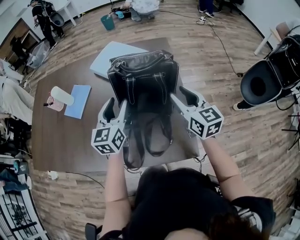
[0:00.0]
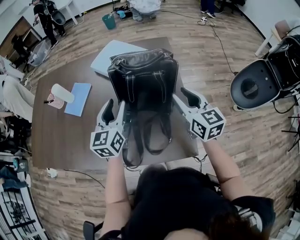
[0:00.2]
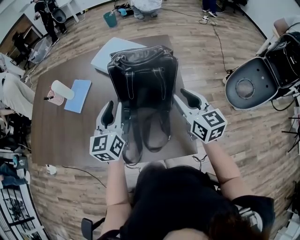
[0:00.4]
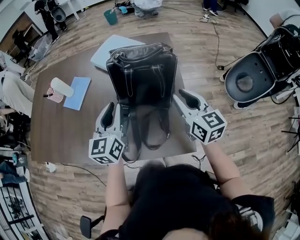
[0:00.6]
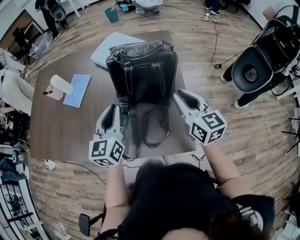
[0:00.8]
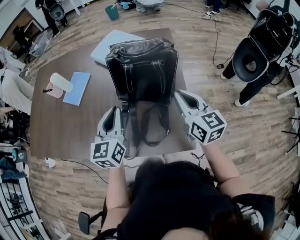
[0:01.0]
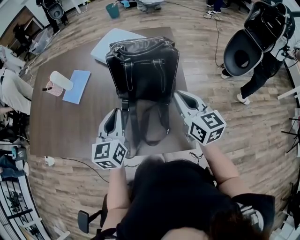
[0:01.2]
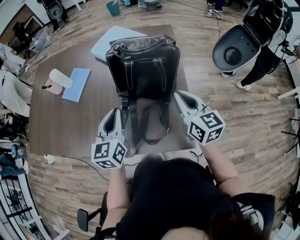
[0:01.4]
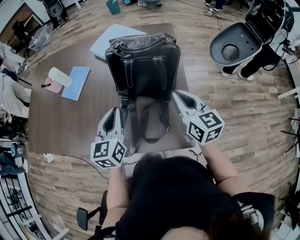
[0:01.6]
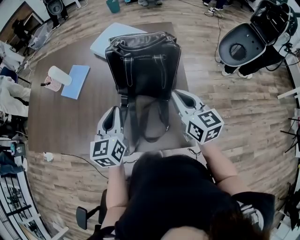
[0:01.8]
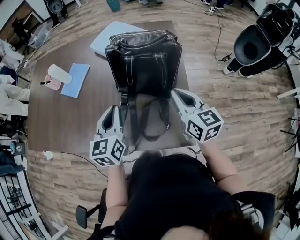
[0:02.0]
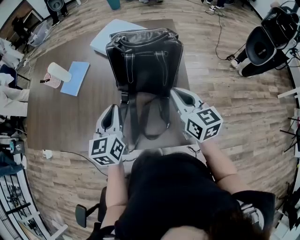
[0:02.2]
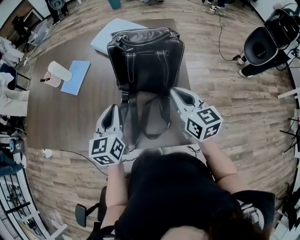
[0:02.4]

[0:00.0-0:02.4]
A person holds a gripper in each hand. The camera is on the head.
0:00.0 to 0:01.2: The right gripper changes place by roughly 5 cm, and closes its fingers; the left gripper shifts approximately 10 cm backward, and closes its fingers.
0:01.2 to 0:02.4: The grippers move only a little.

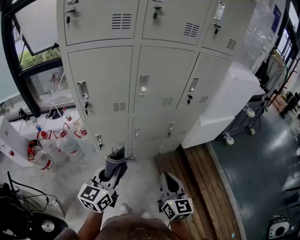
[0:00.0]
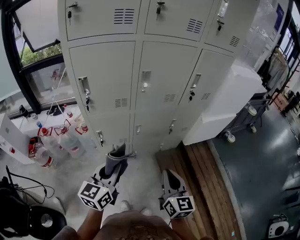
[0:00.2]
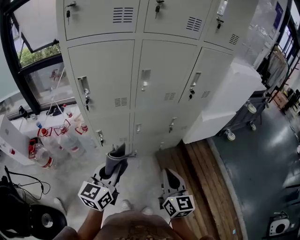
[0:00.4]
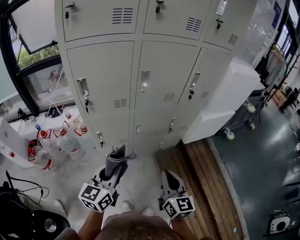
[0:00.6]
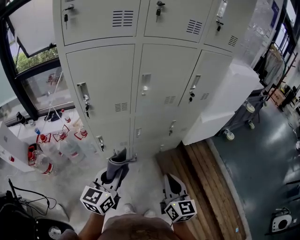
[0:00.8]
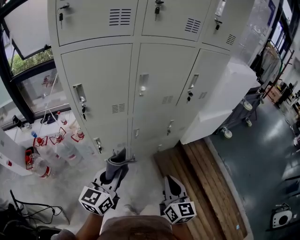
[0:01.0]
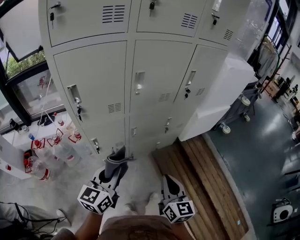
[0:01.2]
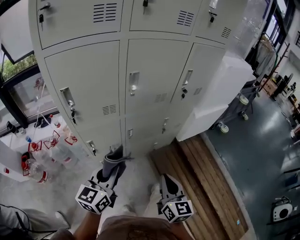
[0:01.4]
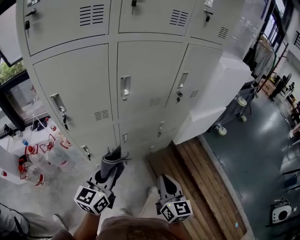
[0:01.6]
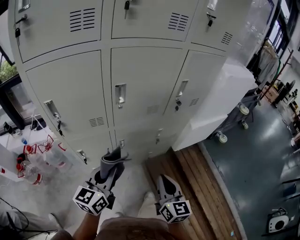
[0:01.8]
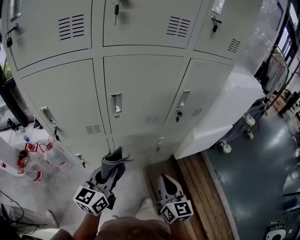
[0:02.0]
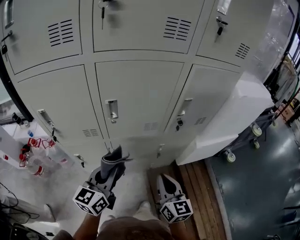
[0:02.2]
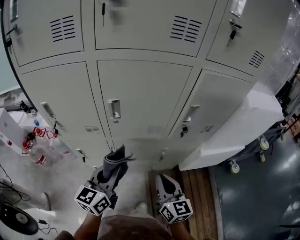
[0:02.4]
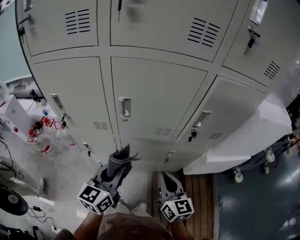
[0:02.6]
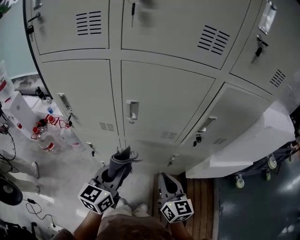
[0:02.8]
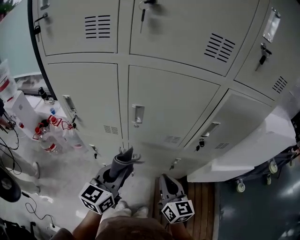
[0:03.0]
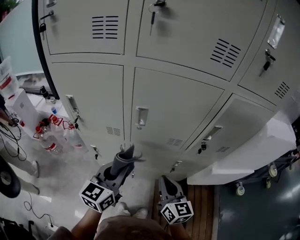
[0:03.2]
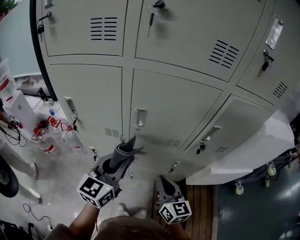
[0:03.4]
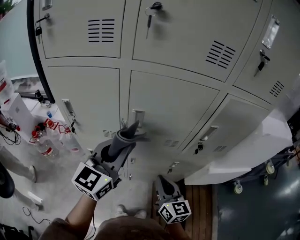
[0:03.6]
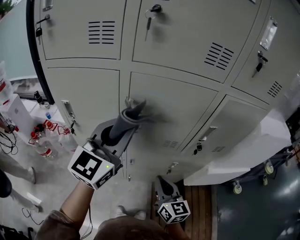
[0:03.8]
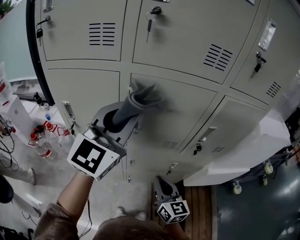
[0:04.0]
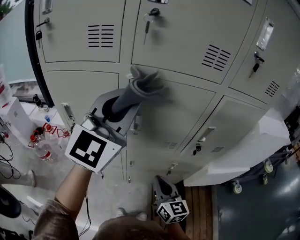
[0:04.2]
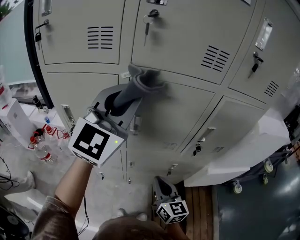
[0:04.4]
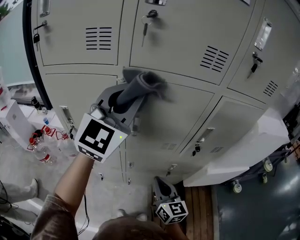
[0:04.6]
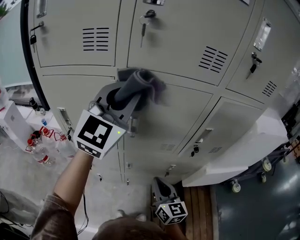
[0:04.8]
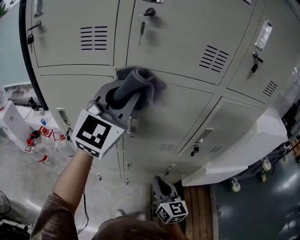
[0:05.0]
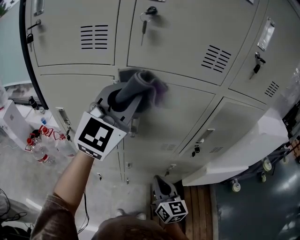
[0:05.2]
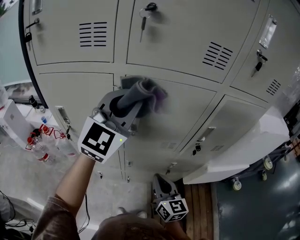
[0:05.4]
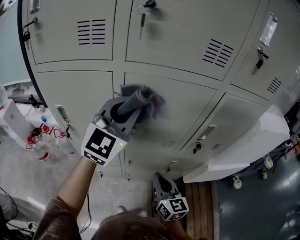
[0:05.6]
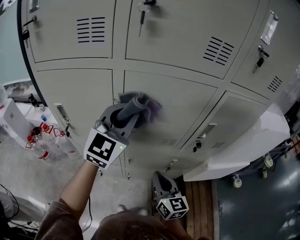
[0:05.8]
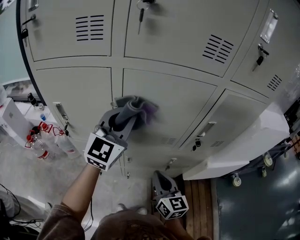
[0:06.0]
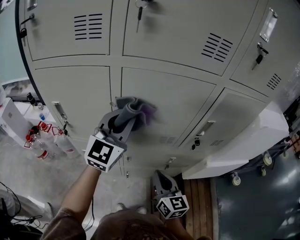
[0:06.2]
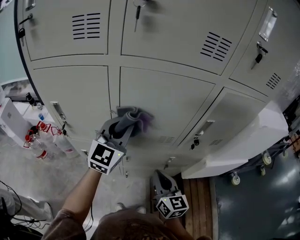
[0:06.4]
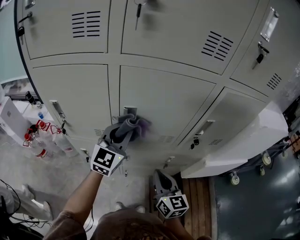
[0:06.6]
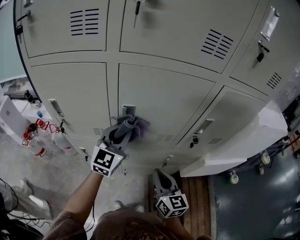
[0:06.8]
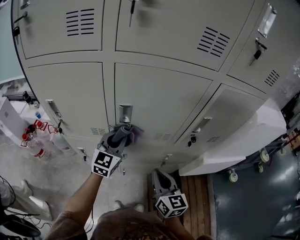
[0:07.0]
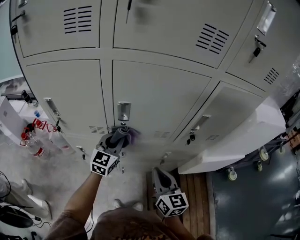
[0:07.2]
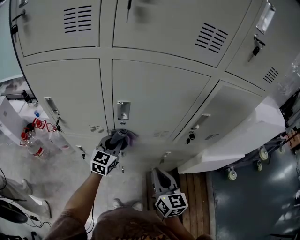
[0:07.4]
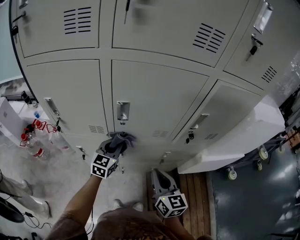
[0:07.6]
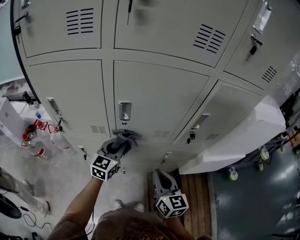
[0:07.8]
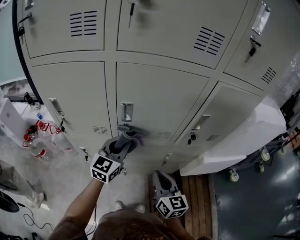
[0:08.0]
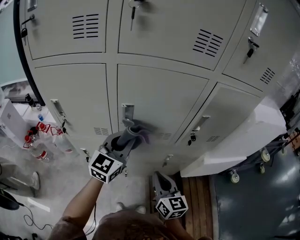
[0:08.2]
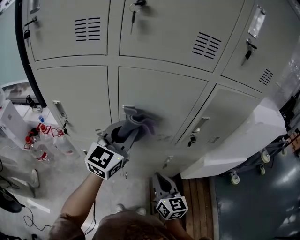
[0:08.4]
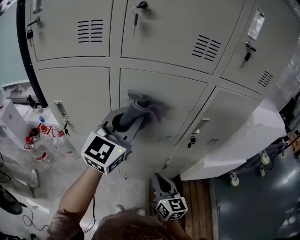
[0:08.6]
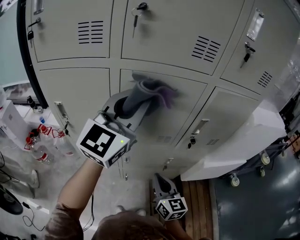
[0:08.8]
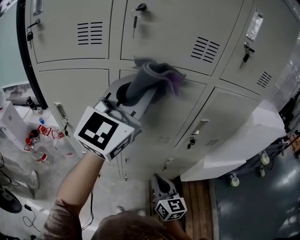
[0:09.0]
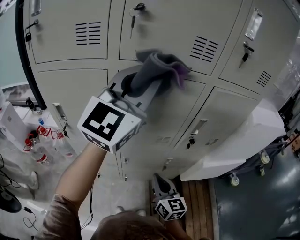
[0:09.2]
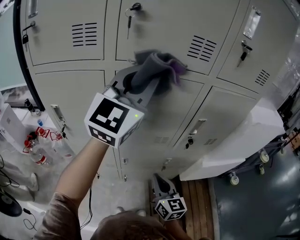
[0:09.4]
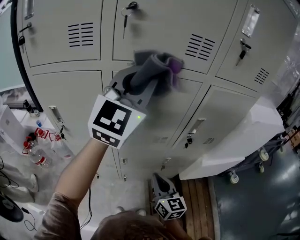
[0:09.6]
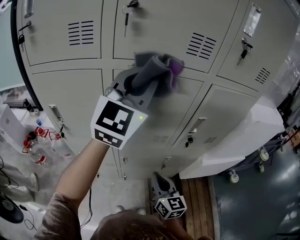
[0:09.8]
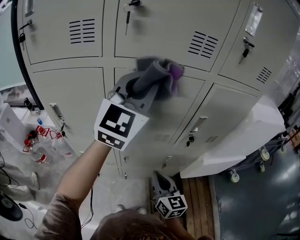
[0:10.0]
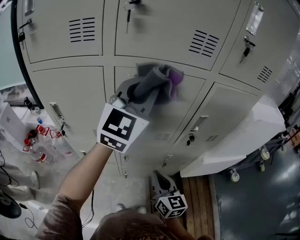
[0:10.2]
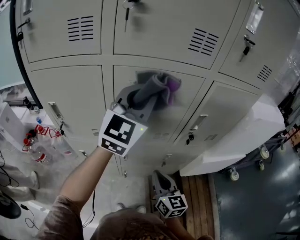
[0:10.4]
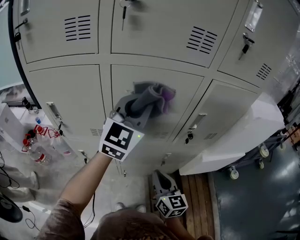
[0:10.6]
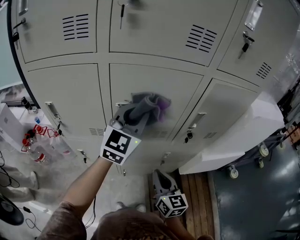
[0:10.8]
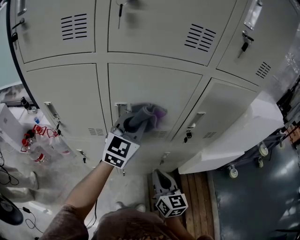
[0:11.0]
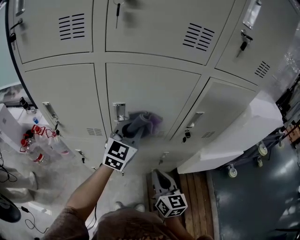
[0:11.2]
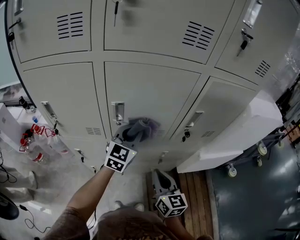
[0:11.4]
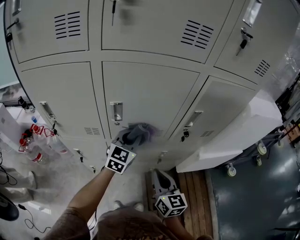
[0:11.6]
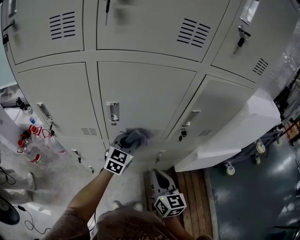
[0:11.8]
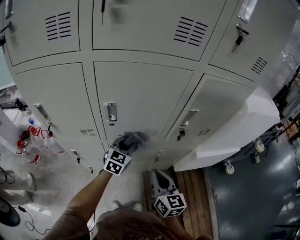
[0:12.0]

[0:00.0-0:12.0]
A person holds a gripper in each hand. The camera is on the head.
0:00.0 to 0:01.6: The left gripper is displaced forward by about 10 cm, while the right gripper goes roughly 5 cm forward.
0:01.6 to 0:03.0: The left gripper ends up some 15 cm from where it was, and swivels roughly 20 degrees. The right gripper changes place by roughly 20 cm, and swivels approximately 30 degrees.
0:03.0 to 0:04.4: The left gripper shifts roughly 30 cm upward and forward, and turns by some 40 degrees.
0:04.4 to 0:06.0: The left gripper moves downward, some 15 cm.
0:06.0 to 0:07.6: The left gripper is displaced downward by approximately 25 cm, and turns by approximately 30 degrees.
0:07.6 to 0:09.0: The left gripper is displaced upward by some 40 cm, and tips its fingers upward by roughly 30 degrees.
0:09.0 to 0:10.4: The left gripper travels downward and forward by roughly 10 cm.
0:10.4 to 0:12.0: The left gripper goes roughly 35 cm downward, and swivels roughly 30 degrees.

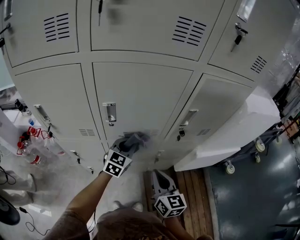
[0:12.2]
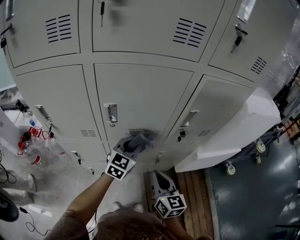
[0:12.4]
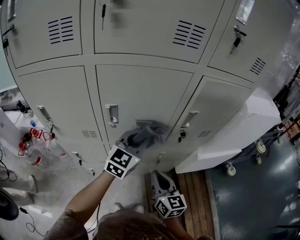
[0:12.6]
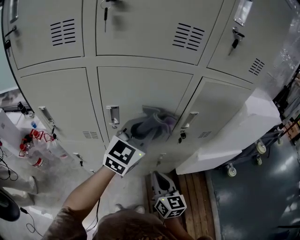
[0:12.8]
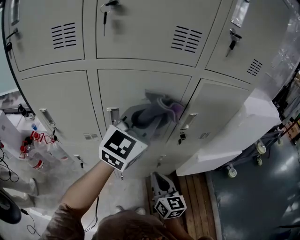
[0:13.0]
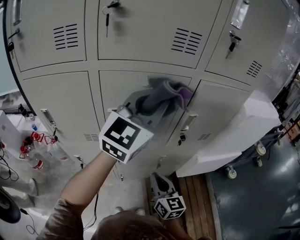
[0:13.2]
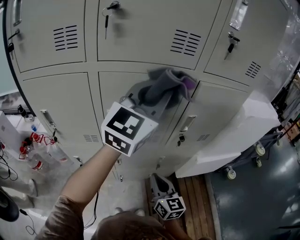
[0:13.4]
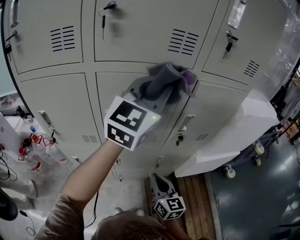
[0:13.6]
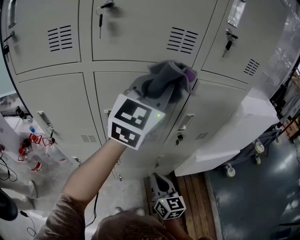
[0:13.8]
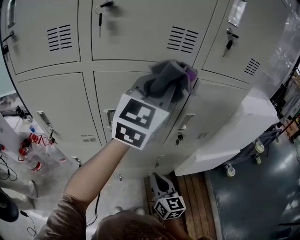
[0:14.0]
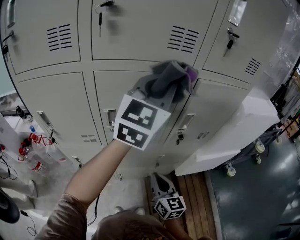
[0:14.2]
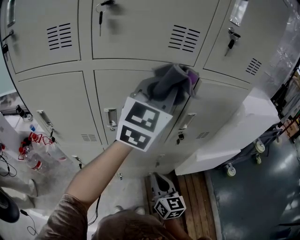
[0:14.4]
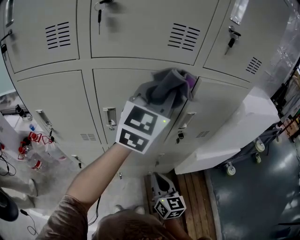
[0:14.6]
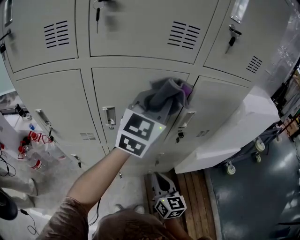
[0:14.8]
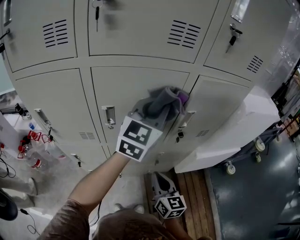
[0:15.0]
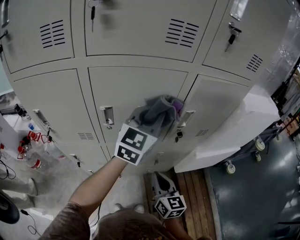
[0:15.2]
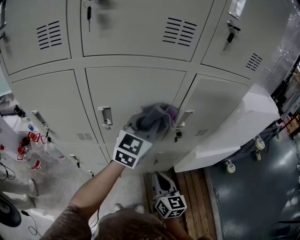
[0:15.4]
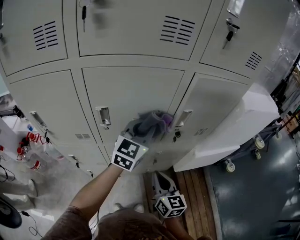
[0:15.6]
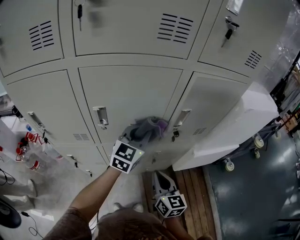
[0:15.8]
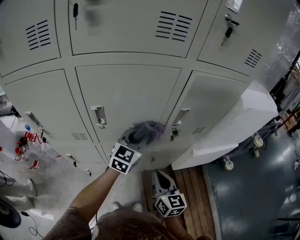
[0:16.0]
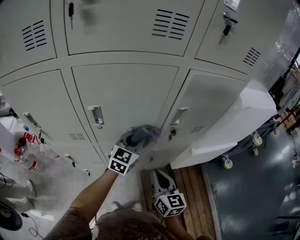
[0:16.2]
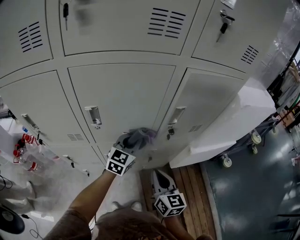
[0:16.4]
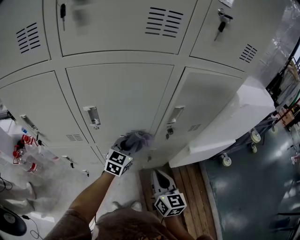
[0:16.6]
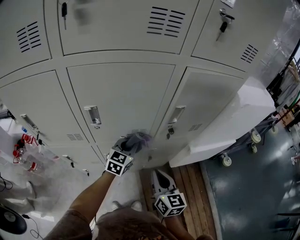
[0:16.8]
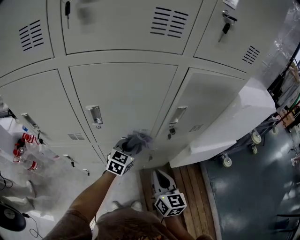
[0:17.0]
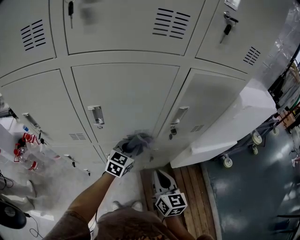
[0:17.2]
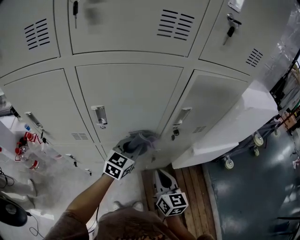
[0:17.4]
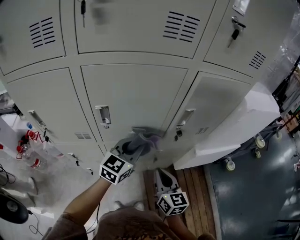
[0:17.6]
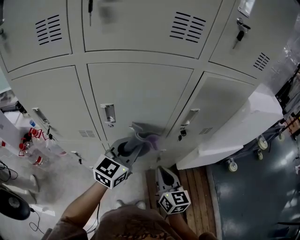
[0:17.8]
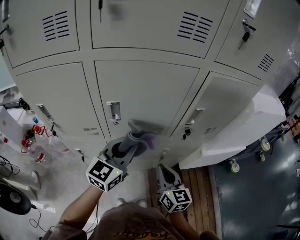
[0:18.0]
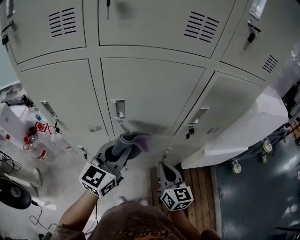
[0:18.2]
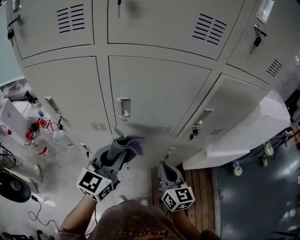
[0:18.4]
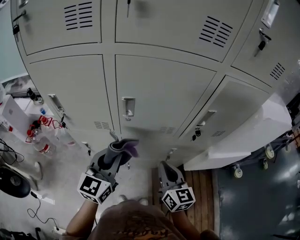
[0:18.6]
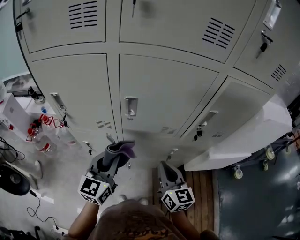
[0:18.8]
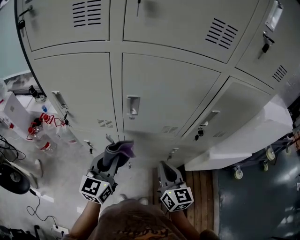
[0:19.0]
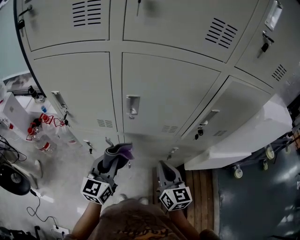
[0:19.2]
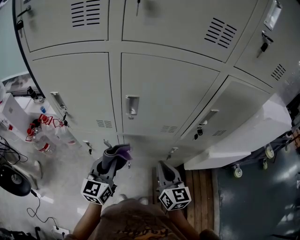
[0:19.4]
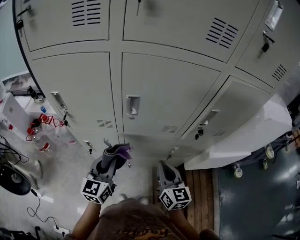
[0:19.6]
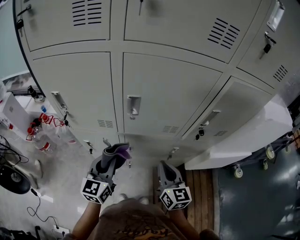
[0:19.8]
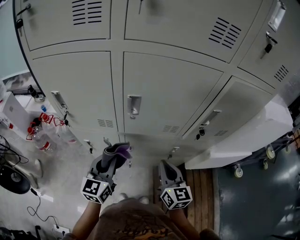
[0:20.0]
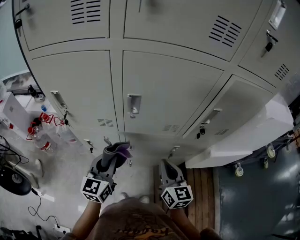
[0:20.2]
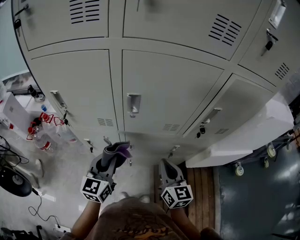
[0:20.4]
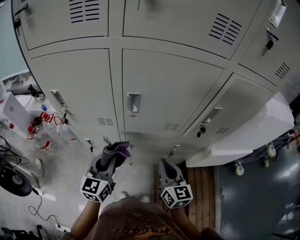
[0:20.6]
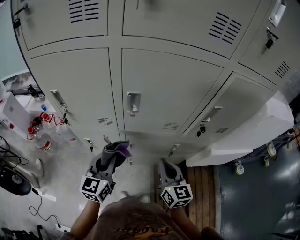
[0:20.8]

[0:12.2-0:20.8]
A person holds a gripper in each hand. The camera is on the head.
0:12.2 to 0:13.6: The left gripper goes approximately 40 cm upward, and tilts its fingers about 30 degrees upward.
0:13.6 to 0:15.0: The left gripper moves downward, some 10 cm.
0:15.0 to 0:16.6: The left gripper travels downward by about 30 cm, and changes its angle by approximately 20 degrees.
0:16.6 to 0:18.0: The left gripper goes about 15 cm upward, backward and to the left.
0:18.0 to 0:19.4: The left gripper shifts approximately 15 cm to the left, downward and backward, and swivels some 20 degrees.
0:19.4 to 0:20.8: The two grippers keep their place.

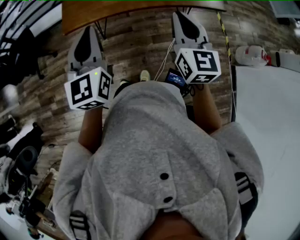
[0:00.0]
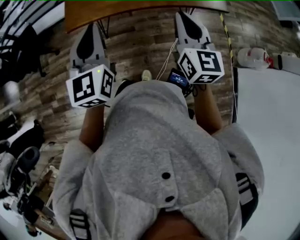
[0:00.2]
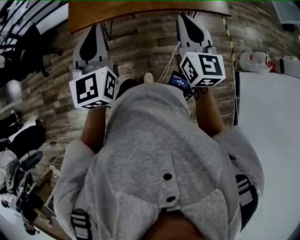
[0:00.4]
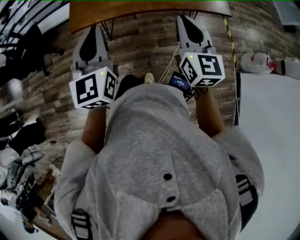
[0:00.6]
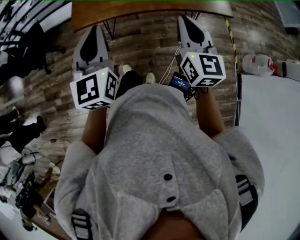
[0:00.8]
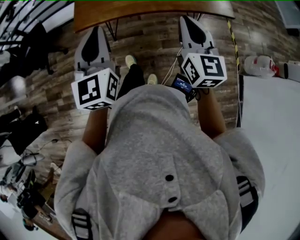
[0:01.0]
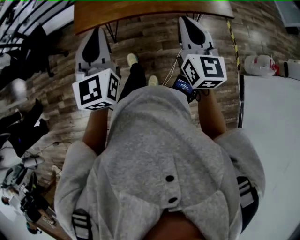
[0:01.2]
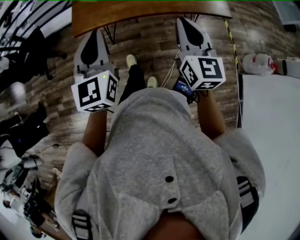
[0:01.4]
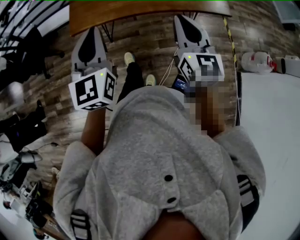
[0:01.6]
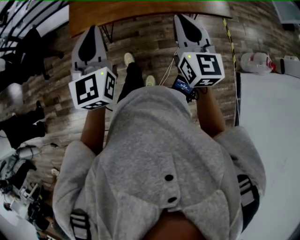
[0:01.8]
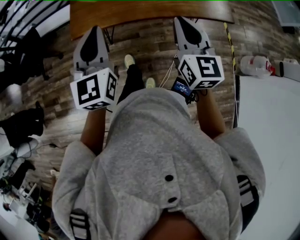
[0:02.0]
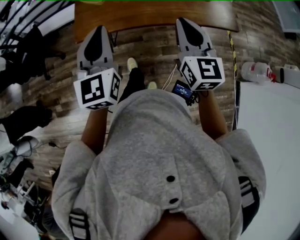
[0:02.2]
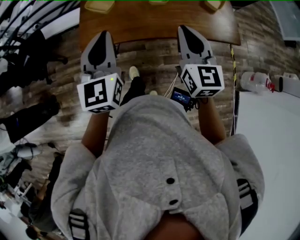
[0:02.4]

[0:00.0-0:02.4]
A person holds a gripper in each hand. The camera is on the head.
0:00.0 to 0:01.2: There are only small adjustments of the grippers.
0:01.2 to 0:02.4: The two grippers go about 15 cm forward.
